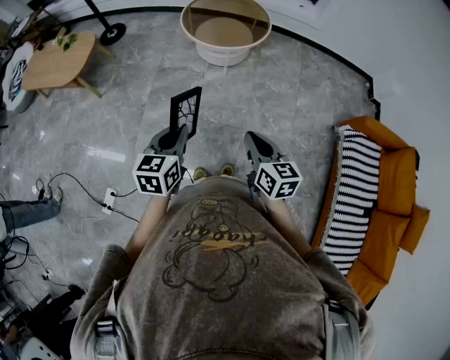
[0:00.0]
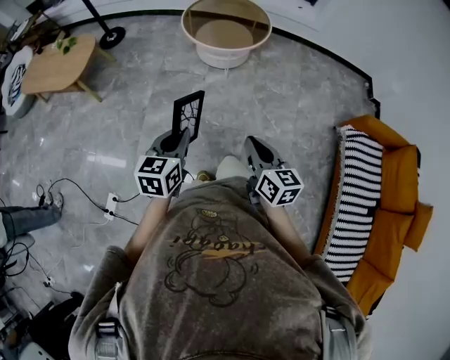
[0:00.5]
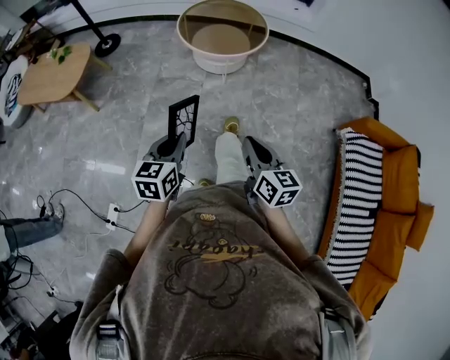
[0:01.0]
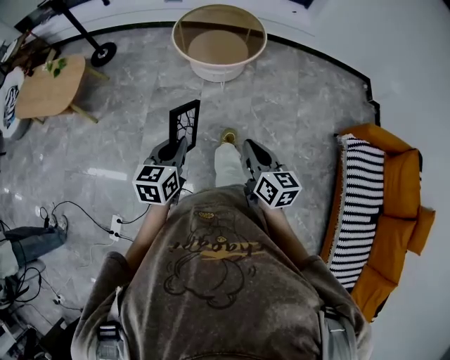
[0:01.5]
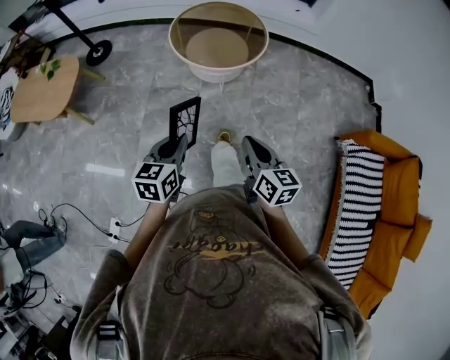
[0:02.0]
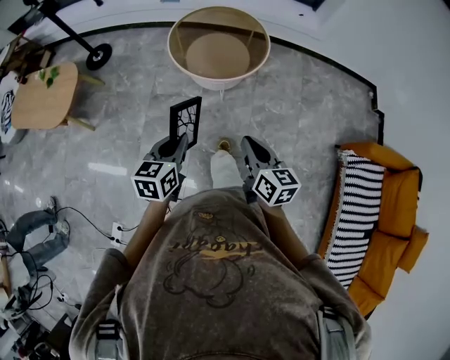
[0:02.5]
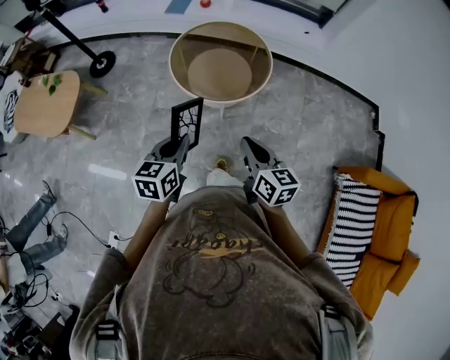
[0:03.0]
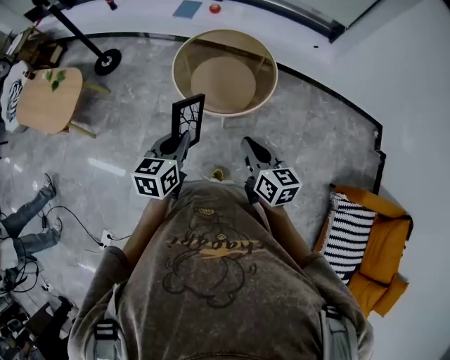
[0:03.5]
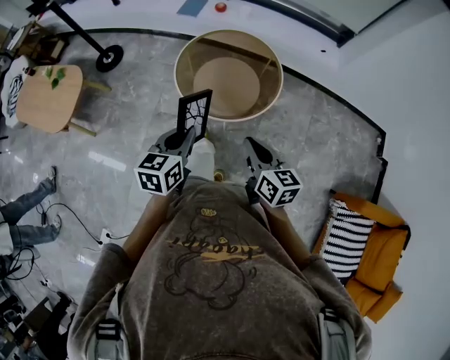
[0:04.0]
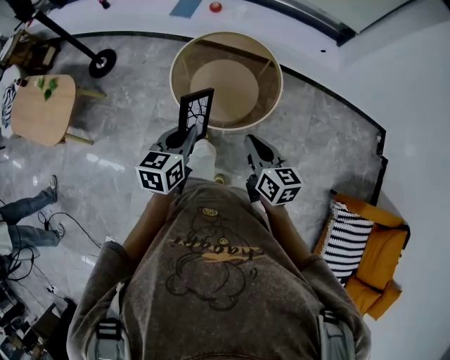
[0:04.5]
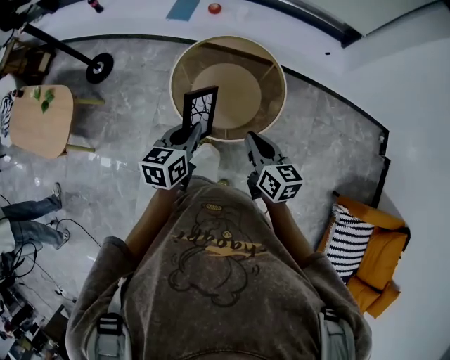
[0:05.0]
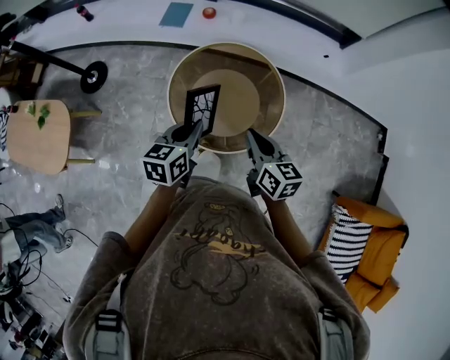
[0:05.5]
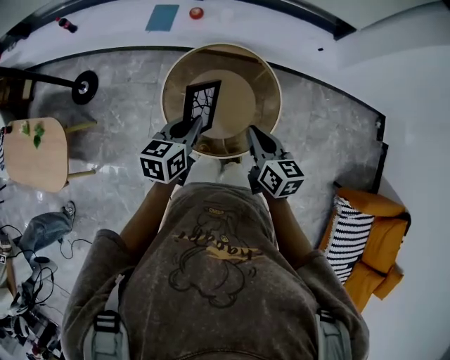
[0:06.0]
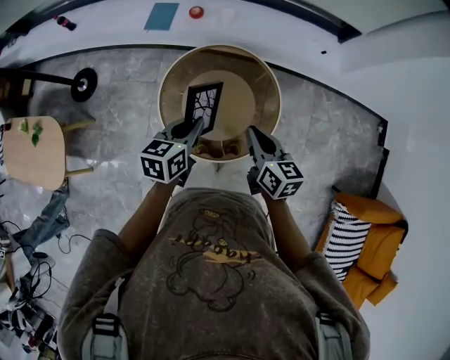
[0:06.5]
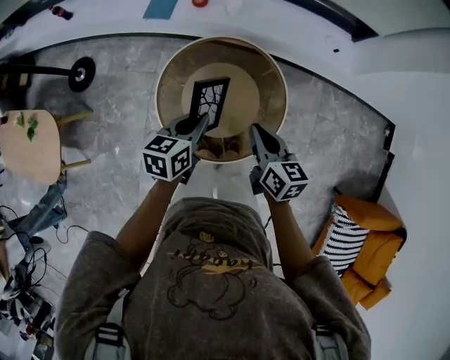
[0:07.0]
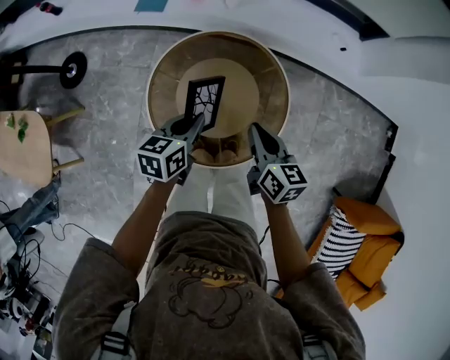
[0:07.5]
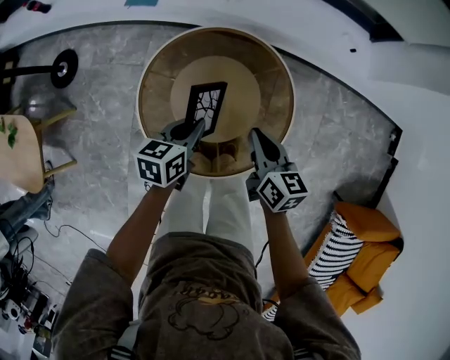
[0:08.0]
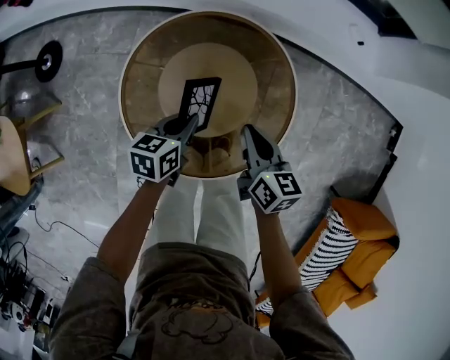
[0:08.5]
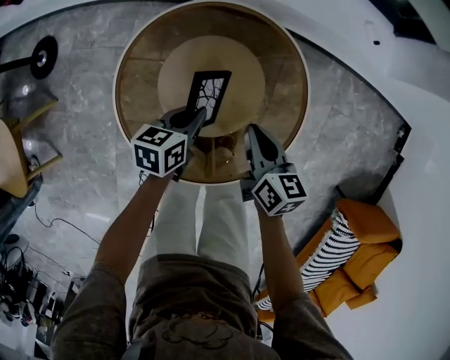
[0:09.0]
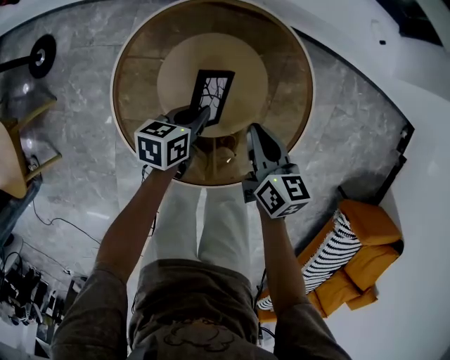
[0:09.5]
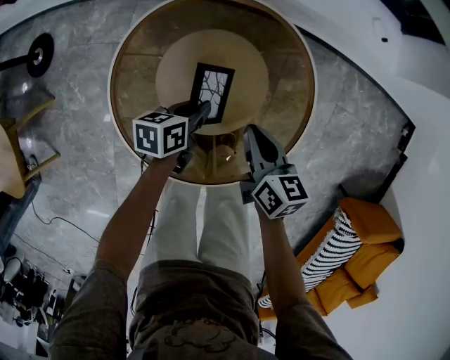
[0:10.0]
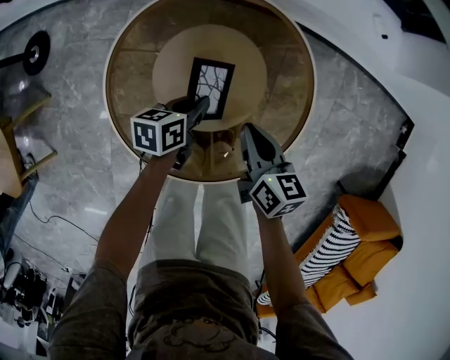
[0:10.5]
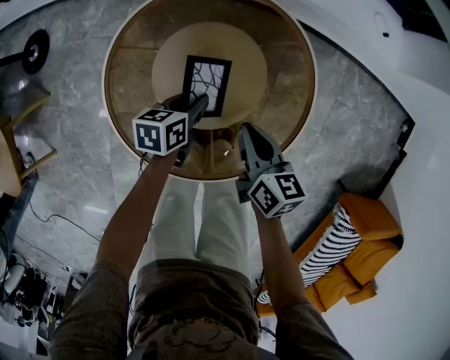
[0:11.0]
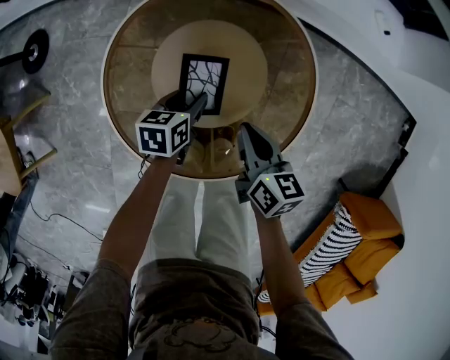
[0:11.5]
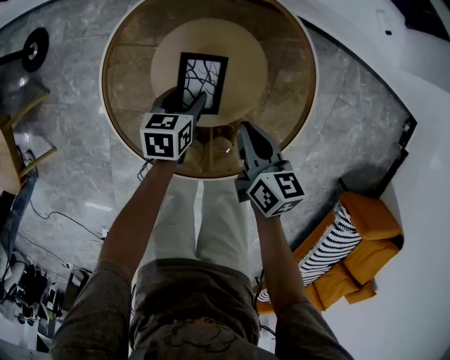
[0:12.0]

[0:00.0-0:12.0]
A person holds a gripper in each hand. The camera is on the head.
0:00.0 to 0:02.0: Both grippers travel together forward, about 15 cm.
0:02.0 to 0:04.0: Both grippers travel together forward, about 30 cm.
0:04.0 to 0:06.0: The two grippers go approximately 30 cm forward.
0:06.0 to 0:08.0: Both grippers travel together downward and forward, some 20 cm.
0:08.0 to 0:10.0: Both grippers move downward, roughly 15 cm.
0:10.0 to 0:12.0: The left gripper rotates about 20 degrees, and opens.

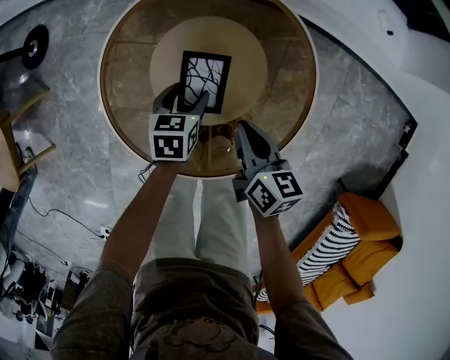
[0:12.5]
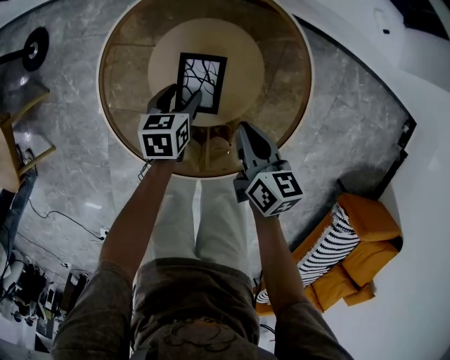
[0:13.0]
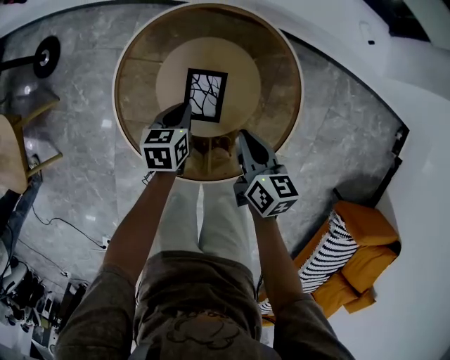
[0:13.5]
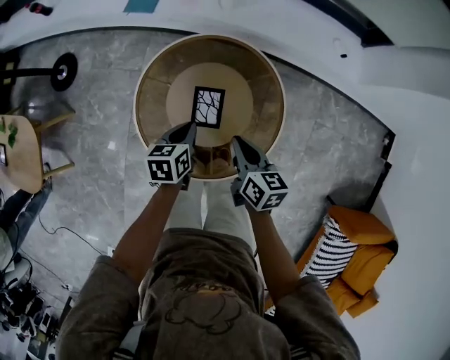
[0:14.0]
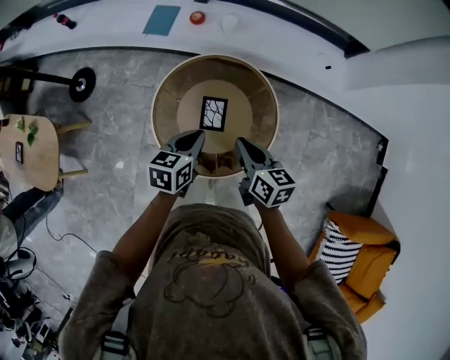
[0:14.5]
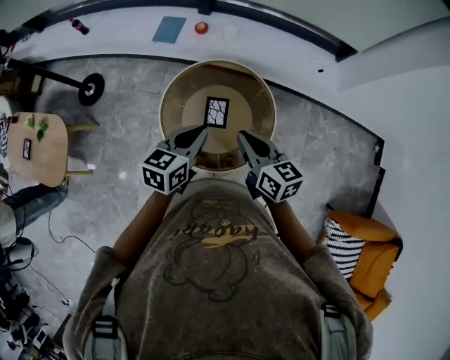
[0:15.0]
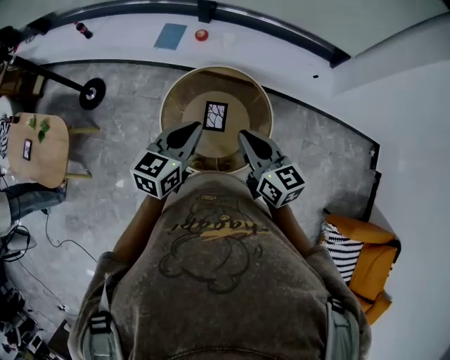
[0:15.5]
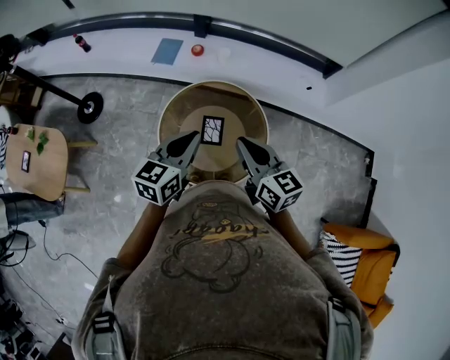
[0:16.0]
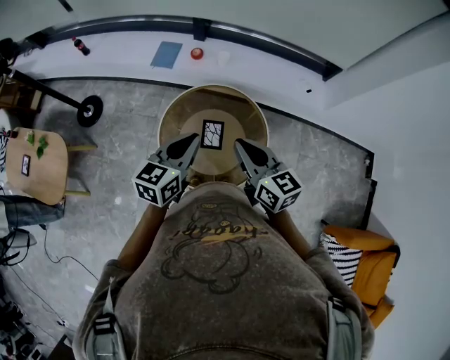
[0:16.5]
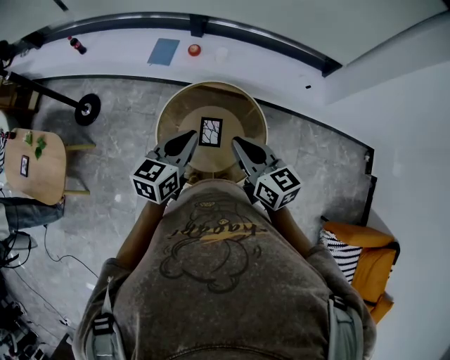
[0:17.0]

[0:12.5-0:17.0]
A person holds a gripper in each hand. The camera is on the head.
0:12.5 to 0:14.5: Both grippers move upward, roughly 30 cm. The left gripper closes.
0:14.5 to 0:17.0: The two grippers go approximately 15 cm upward. The right gripper swivels roughly 20 degrees. Meanwhile the left gripper rotates approximately 20 degrees.

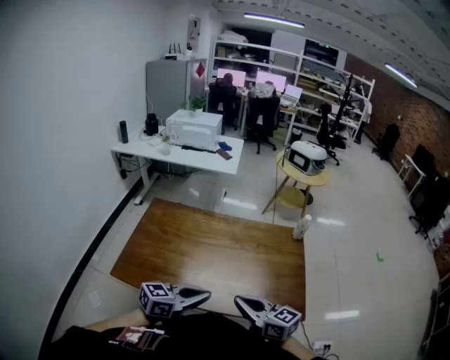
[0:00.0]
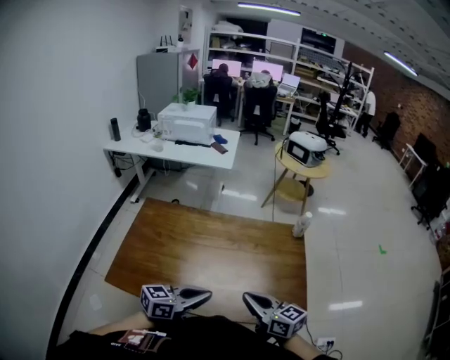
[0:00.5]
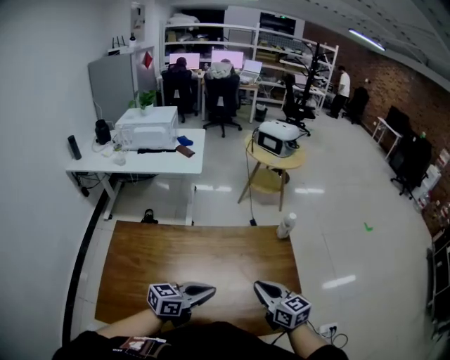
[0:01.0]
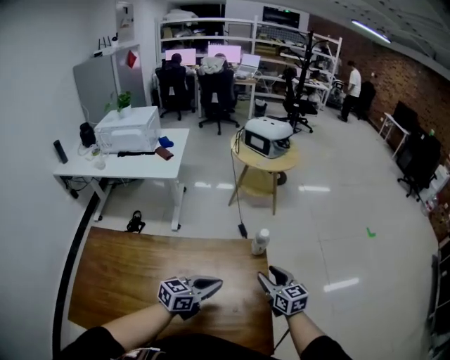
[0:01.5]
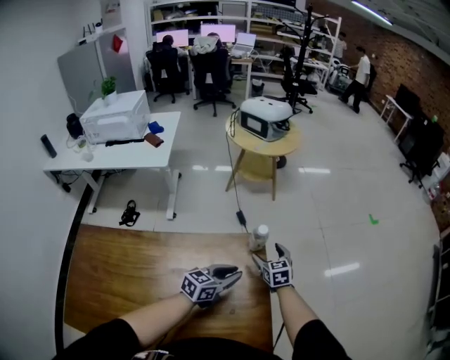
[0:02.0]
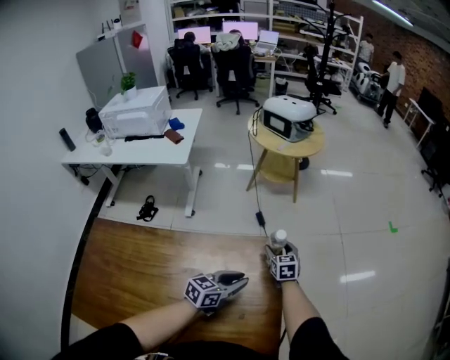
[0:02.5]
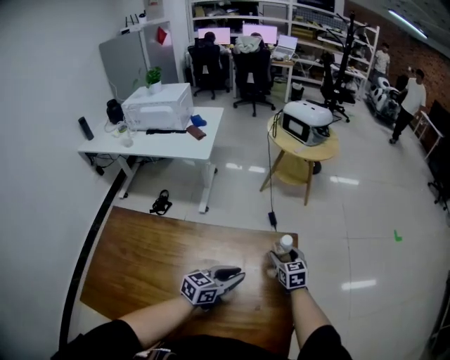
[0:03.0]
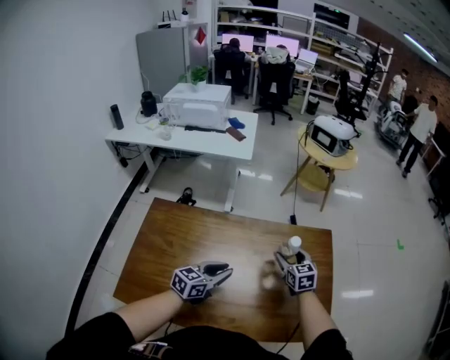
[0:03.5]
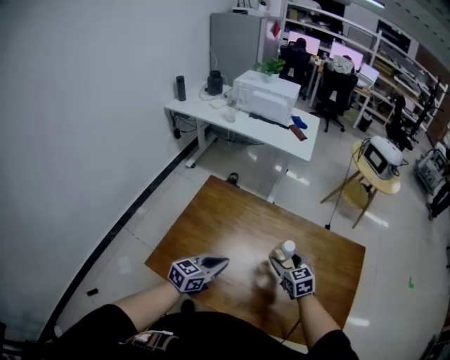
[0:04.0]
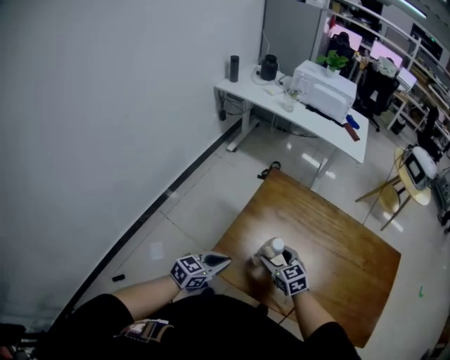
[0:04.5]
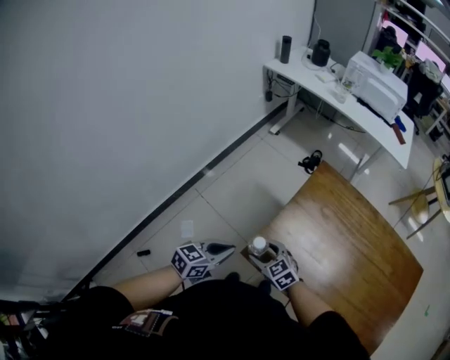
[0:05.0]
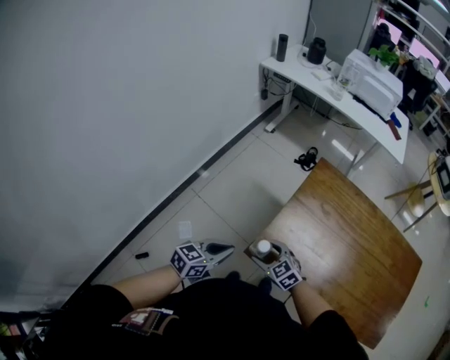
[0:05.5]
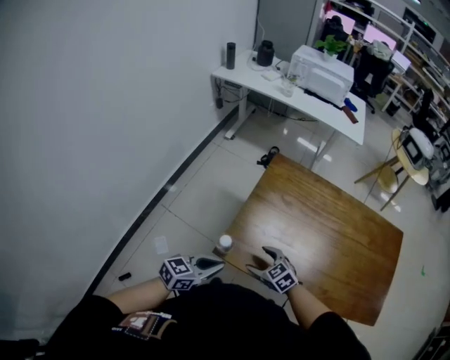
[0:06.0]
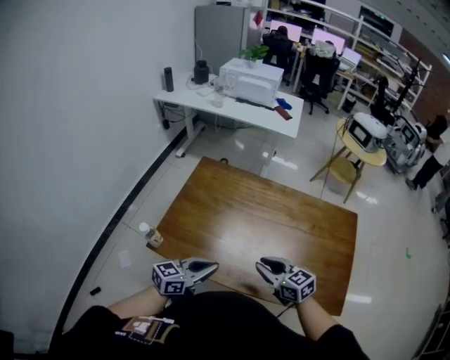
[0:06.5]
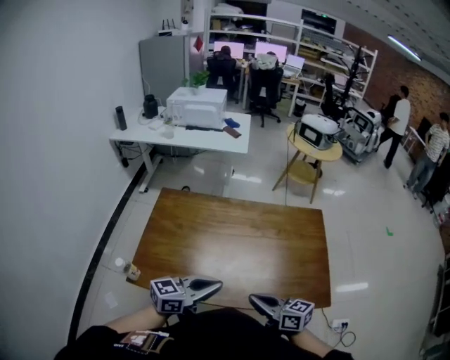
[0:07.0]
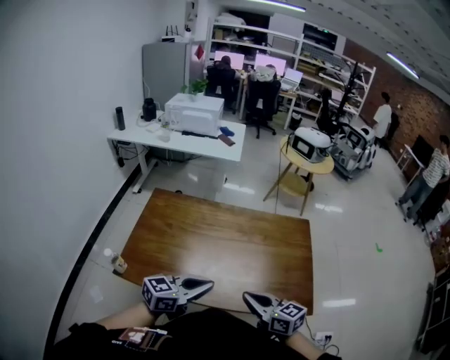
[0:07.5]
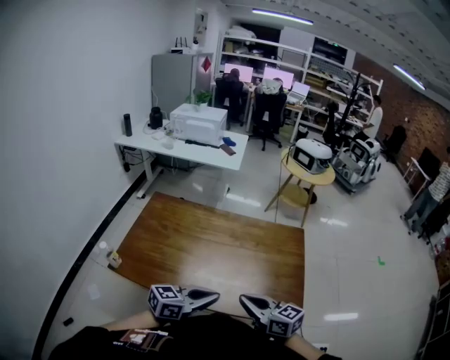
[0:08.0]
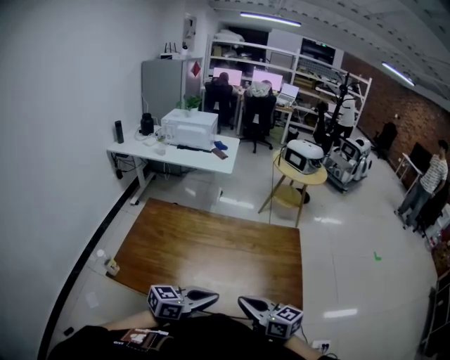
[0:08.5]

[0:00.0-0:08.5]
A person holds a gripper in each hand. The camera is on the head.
0:00.0 to 0:02.0: The two grippers travel together, some 60 cm. The right gripper changes its angle by about 50 degrees, and opens its fingers.
0:02.0 to 0:04.0: Both grippers are carried some 50 cm. The right gripper rotates about 30 degrees. The left gripper turns by about 30 degrees.
0:04.0 to 0:06.5: The two grippers go approximately 15 cm backward. The left gripper travels to the left and back again, about 40 cm each way. The right gripper travels to the left and back again, approximately 50 cm each way, swivels about 20 degrees, and closes.
0:06.5 to 0:08.5: The left gripper goes roughly 25 cm to the right and upward. Meanwhile the right gripper heads to the right, upward and backward, covering some 25 cm, and rotates approximately 20 degrees.

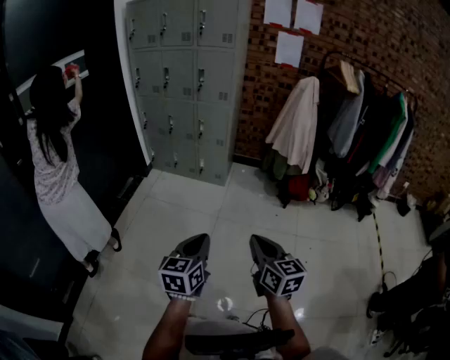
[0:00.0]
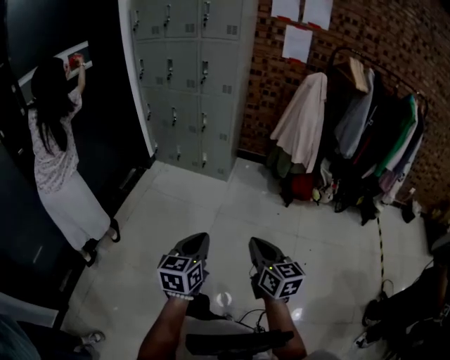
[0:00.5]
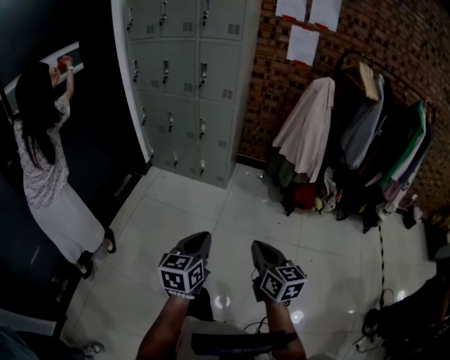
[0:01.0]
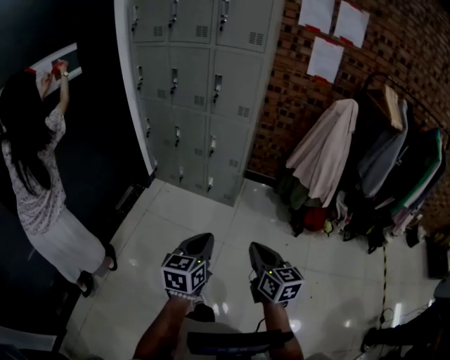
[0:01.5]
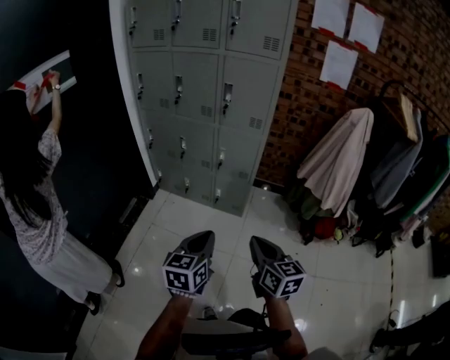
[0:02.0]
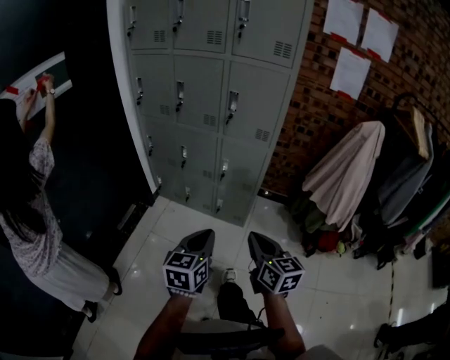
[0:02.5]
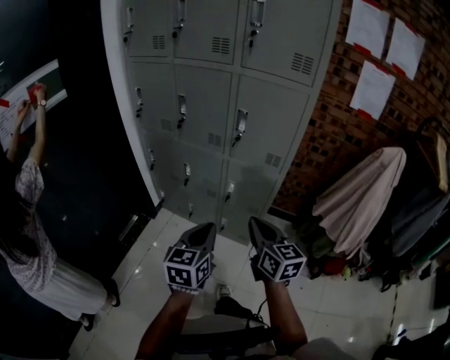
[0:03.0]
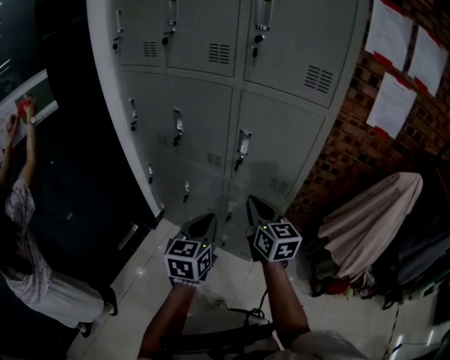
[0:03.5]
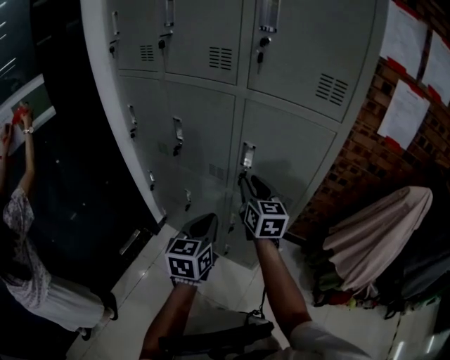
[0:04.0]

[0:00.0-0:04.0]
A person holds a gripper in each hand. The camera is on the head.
0:00.0 to 0:02.0: The pair of grippers is taken forward, some 40 cm.
0:02.0 to 0:04.0: The pair of grippers is taken forward, some 50 cm. The right gripper opens its fingers.
